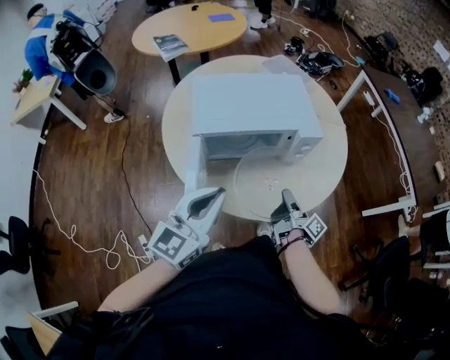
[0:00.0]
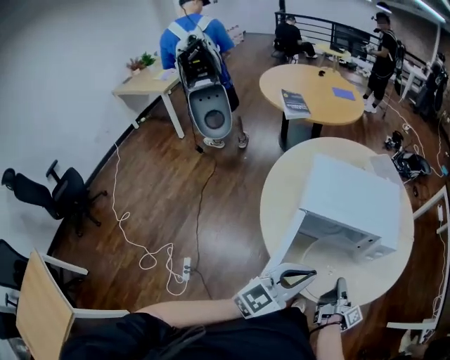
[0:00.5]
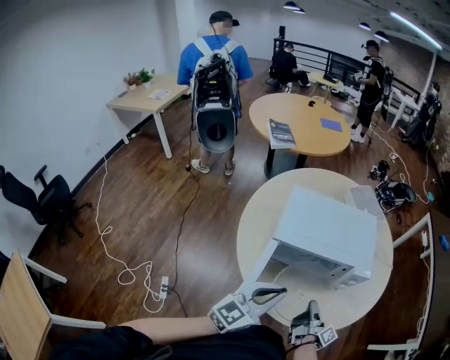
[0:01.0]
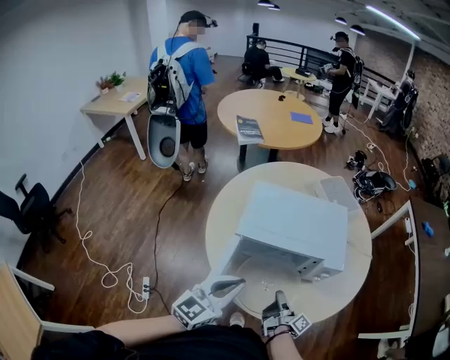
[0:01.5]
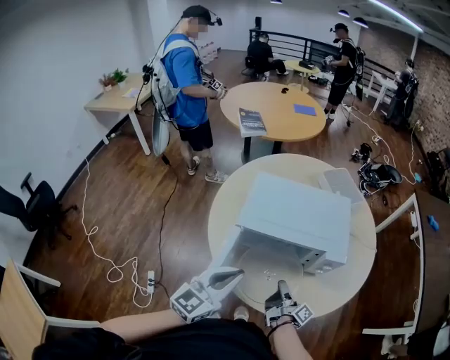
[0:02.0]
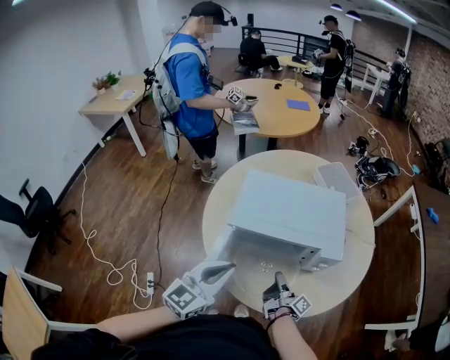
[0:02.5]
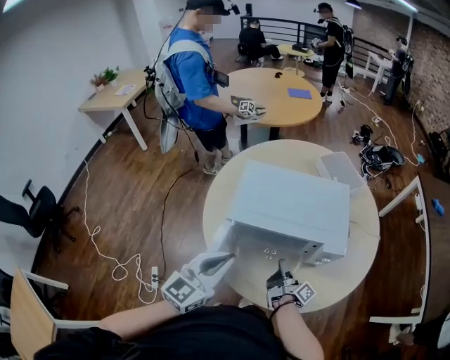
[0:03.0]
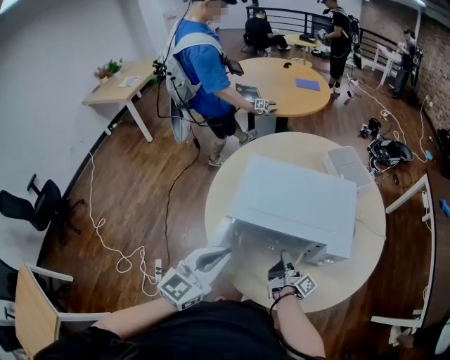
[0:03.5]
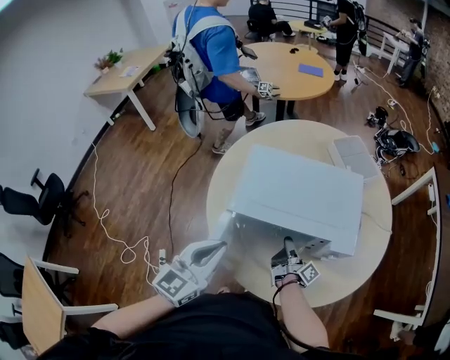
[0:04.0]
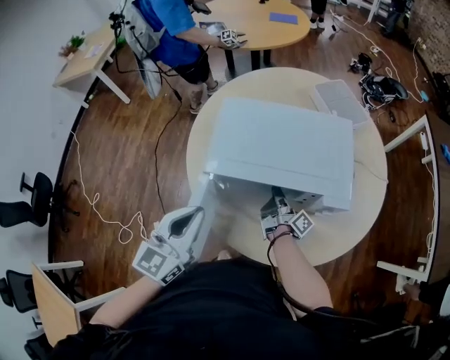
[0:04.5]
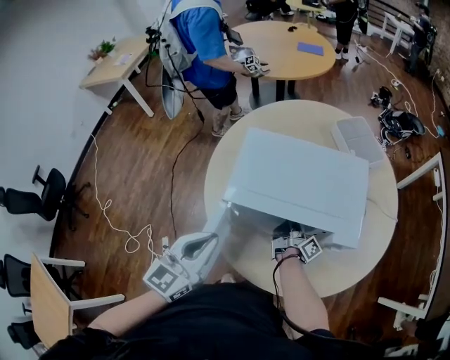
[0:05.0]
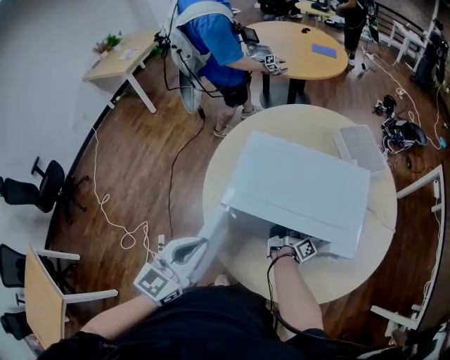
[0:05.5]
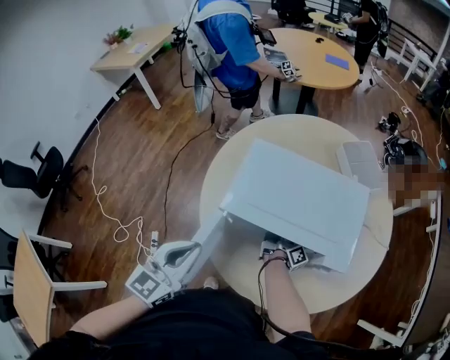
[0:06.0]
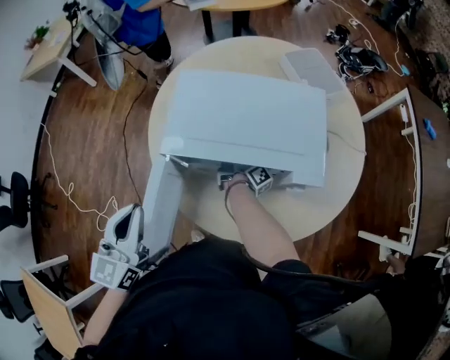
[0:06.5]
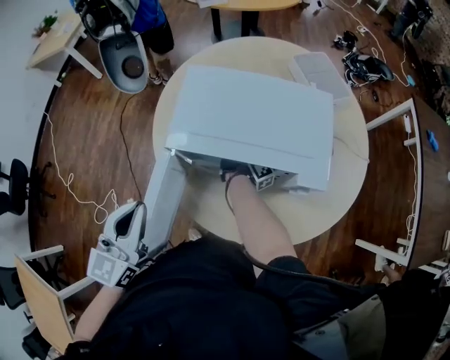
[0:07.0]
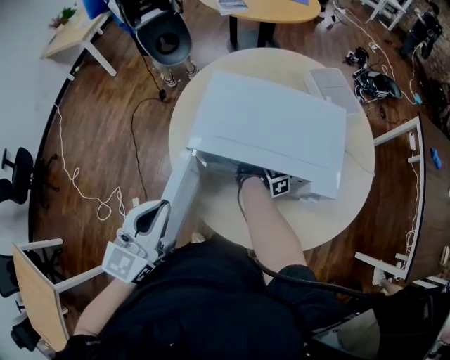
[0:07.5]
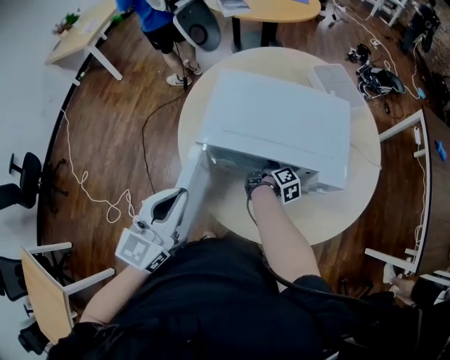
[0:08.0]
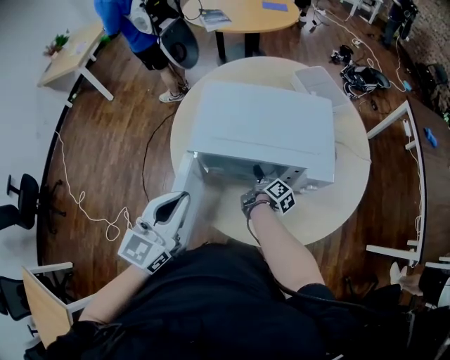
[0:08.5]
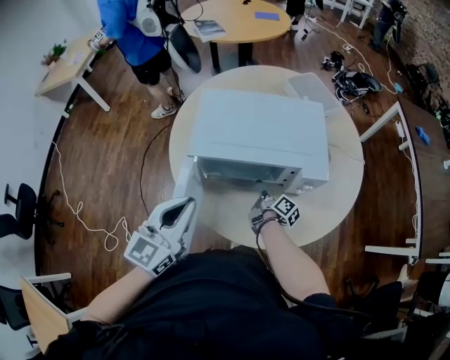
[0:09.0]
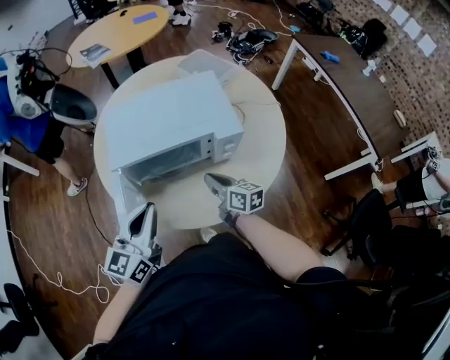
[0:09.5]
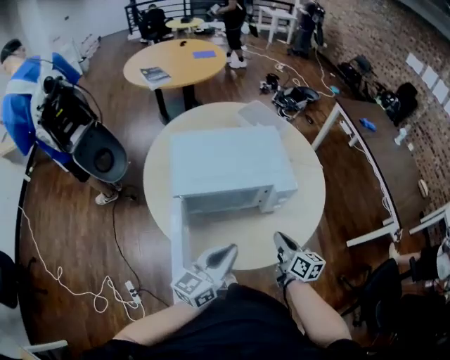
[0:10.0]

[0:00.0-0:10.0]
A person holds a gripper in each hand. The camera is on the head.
0:00.0 to 0:02.0: The right gripper moves to the left, roughly 5 cm.
0:02.0 to 0:04.0: The right gripper moves forward, approximately 10 cm; the left gripper moves some 5 cm.
0:04.0 to 0:06.0: The right gripper shifts approximately 10 cm forward.
0:06.0 to 0:08.0: The right gripper turns by some 30 degrees, and opens its fingers.
0:08.0 to 0:10.0: The left gripper travels to the right by some 15 cm, and rotates roughly 40 degrees; the right gripper heads backward, to the right and upward, covering roughly 25 cm, rolls counterclockwise, seen from behind, by some 40 degrees, and closes its fingers.

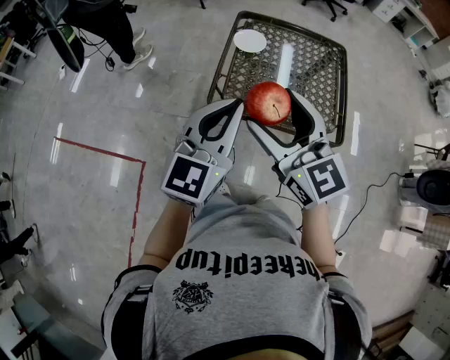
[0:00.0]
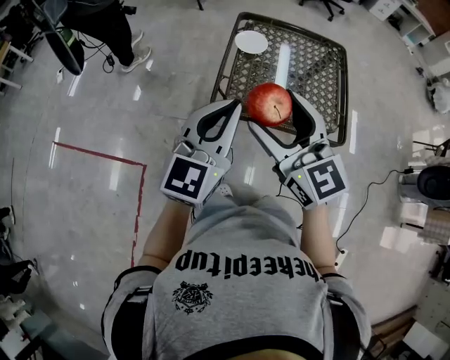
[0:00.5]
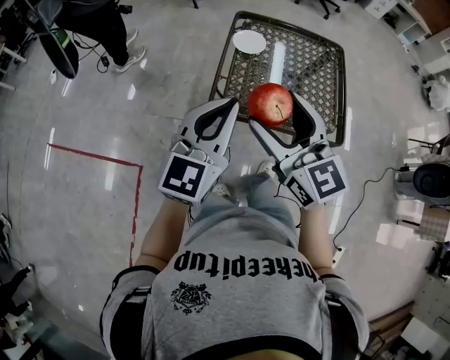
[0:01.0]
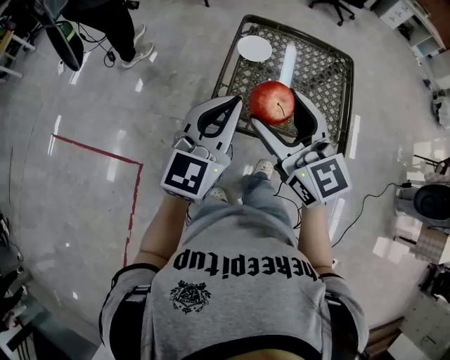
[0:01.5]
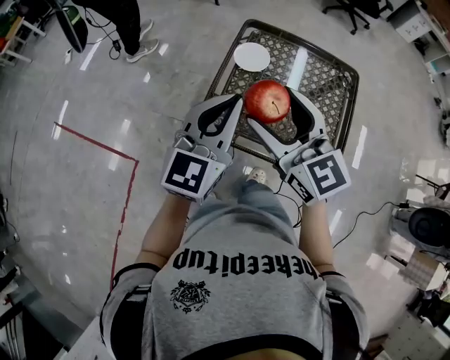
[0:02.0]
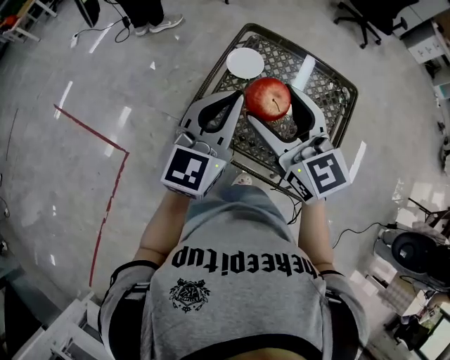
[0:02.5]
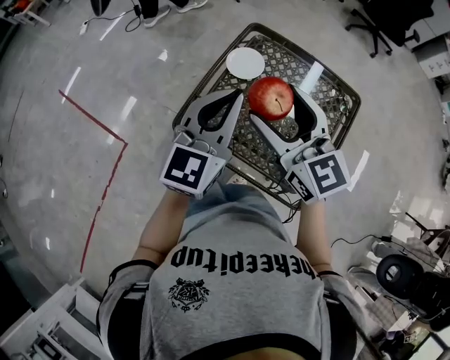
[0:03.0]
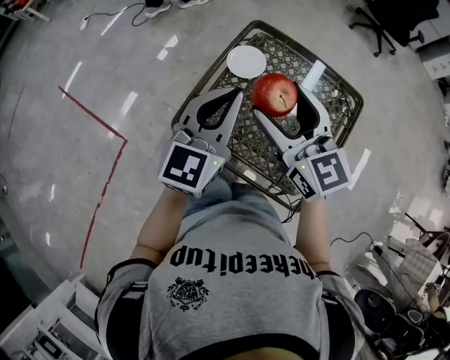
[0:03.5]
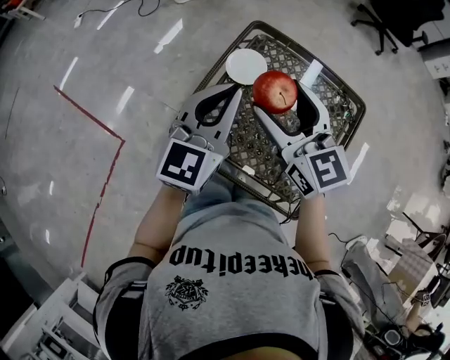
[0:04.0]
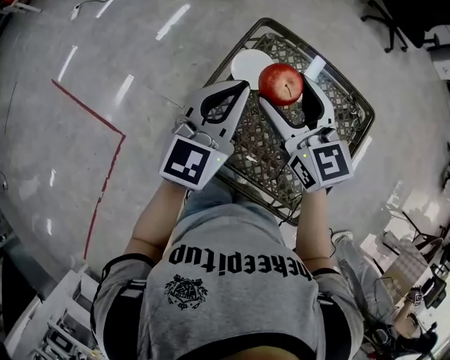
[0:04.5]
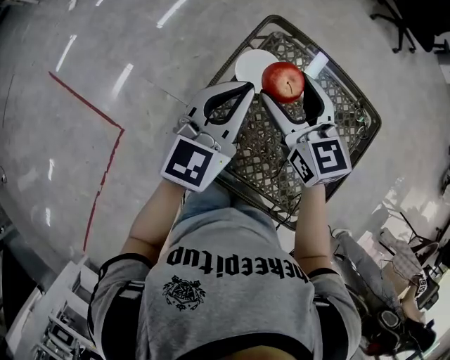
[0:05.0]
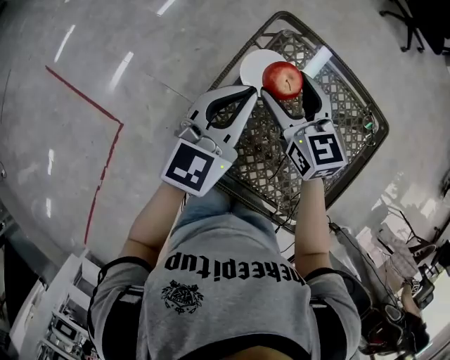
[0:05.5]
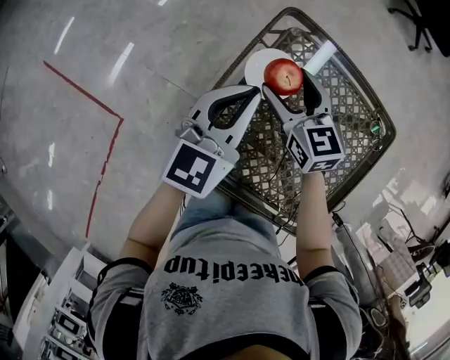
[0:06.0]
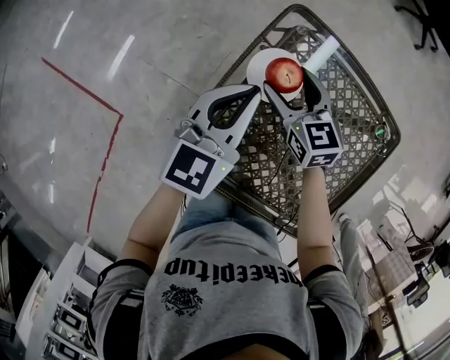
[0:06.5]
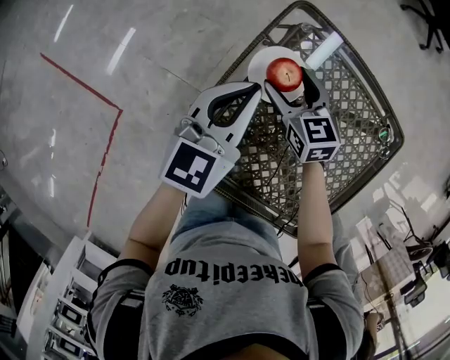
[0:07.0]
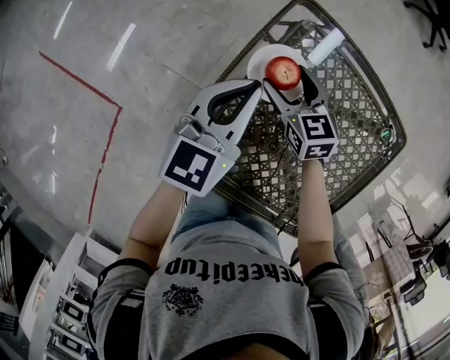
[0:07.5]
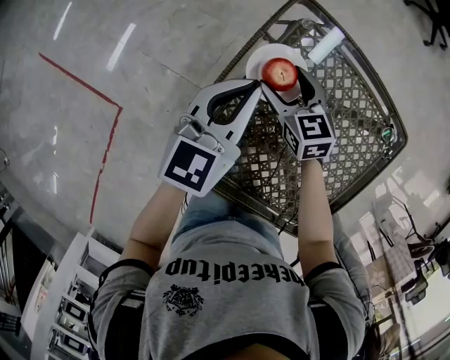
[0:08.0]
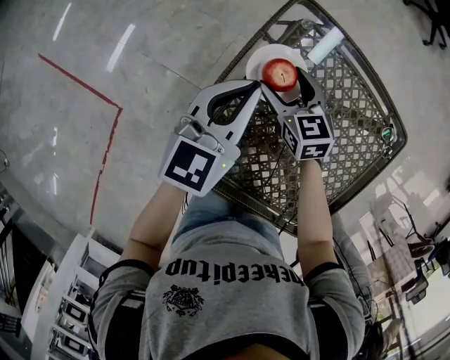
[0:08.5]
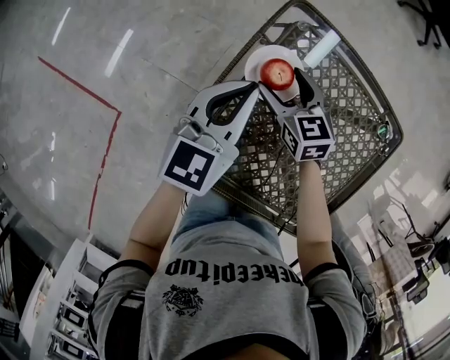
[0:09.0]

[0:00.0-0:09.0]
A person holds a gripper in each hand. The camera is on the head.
0:00.0 to 0:02.0: Both grippers travel together forward, about 15 cm.
0:02.0 to 0:04.5: The grippers both shift forward and to the right by about 20 cm.
0:04.5 to 0:07.0: The right gripper travels downward and forward by approximately 25 cm, and turns by roughly 20 degrees. Meanwhile the left gripper heads downward and forward, covering approximately 15 cm.
0:07.0 to 0:09.0: The grippers make only small movements.

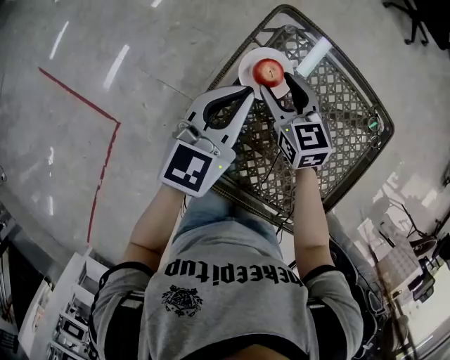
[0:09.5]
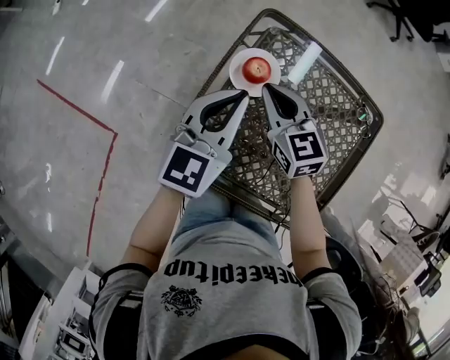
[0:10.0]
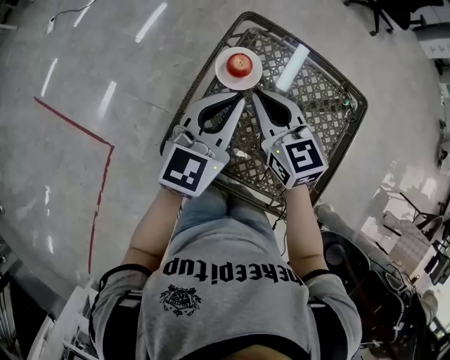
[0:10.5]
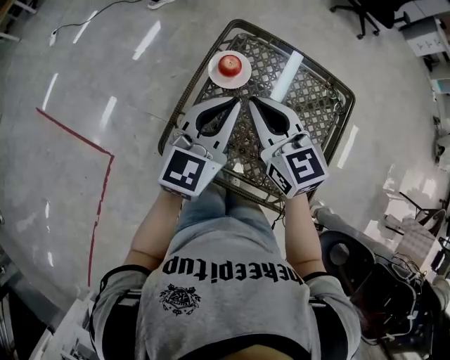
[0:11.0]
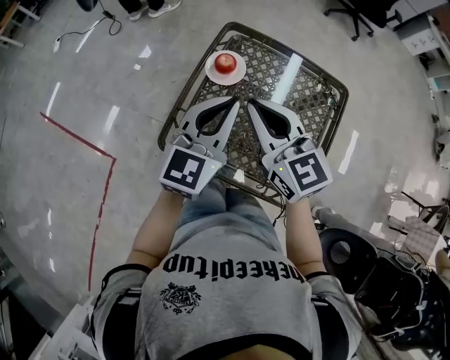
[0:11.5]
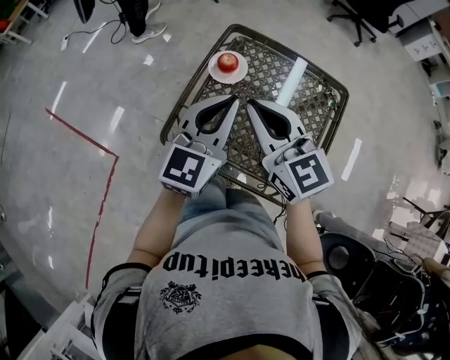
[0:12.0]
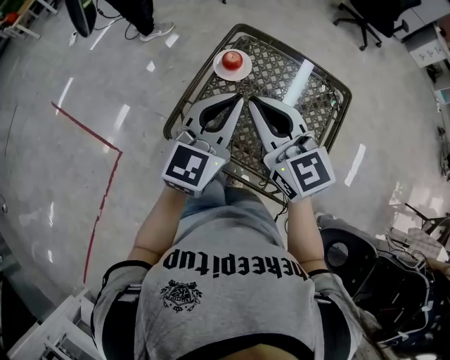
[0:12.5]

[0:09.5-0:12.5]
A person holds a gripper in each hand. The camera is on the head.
0:09.5 to 0:11.0: The right gripper shifts roughly 25 cm upward and backward, and closes its fingers; the left gripper goes approximately 15 cm backward and upward.
0:11.0 to 0:12.5: The grippers both shift backward and upward by some 10 cm.

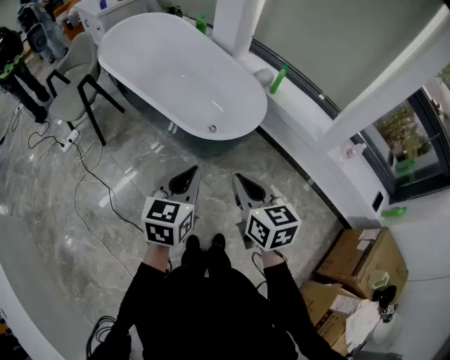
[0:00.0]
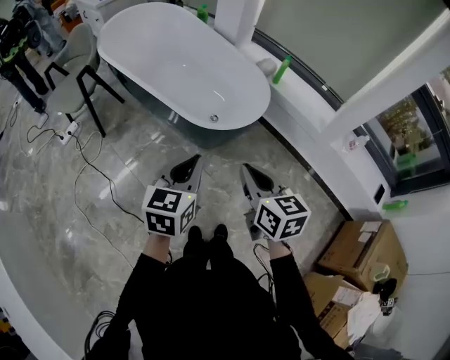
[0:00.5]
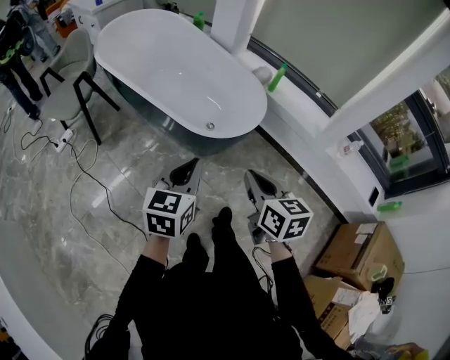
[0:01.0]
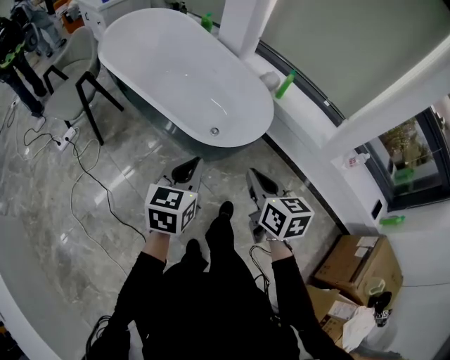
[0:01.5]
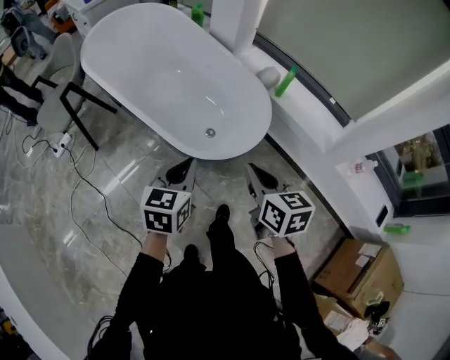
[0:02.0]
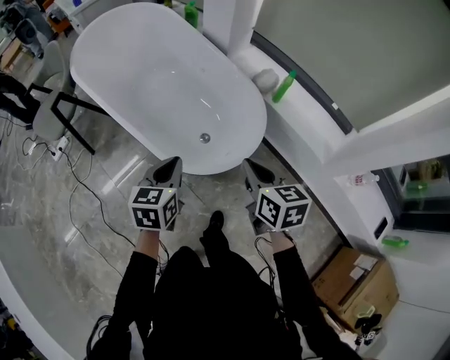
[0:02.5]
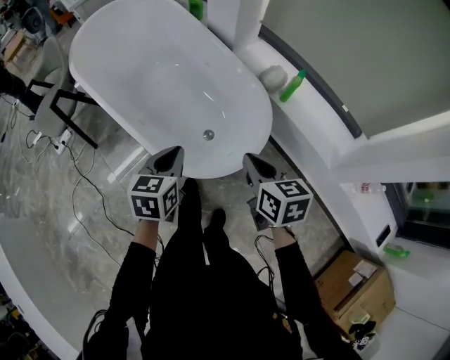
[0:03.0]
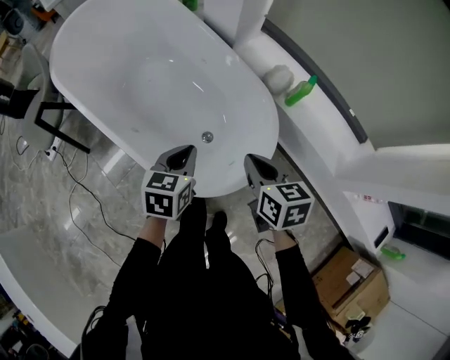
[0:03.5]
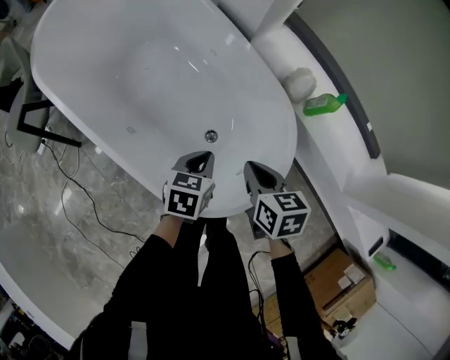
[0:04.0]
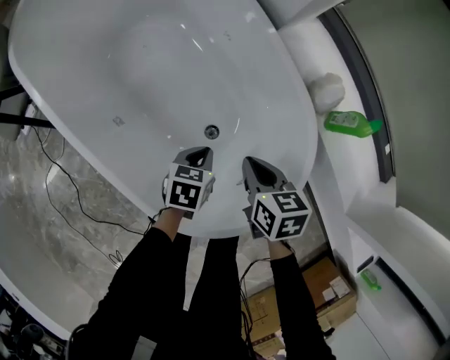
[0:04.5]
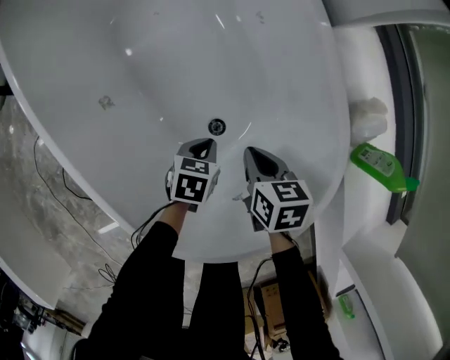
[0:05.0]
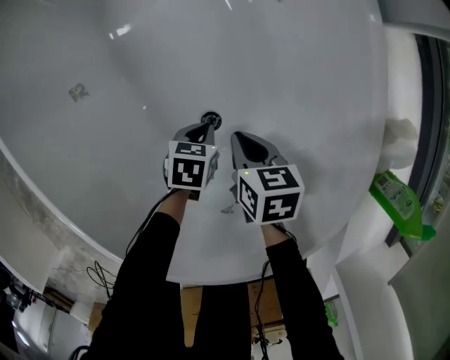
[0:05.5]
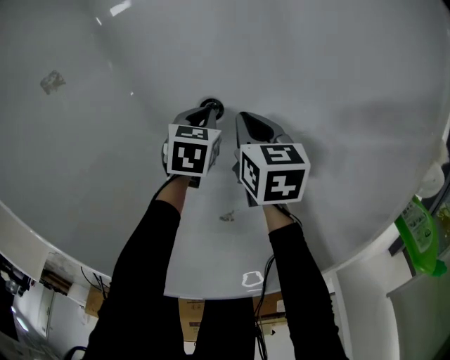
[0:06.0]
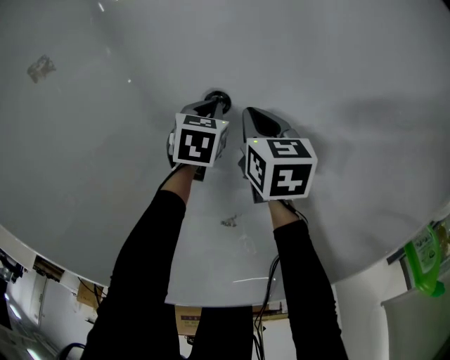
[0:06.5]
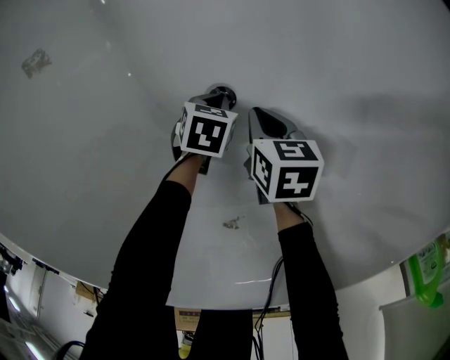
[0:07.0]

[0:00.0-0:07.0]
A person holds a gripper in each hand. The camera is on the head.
0:00.0 to 0:02.0: The two grippers go roughly 20 cm forward.
0:02.0 to 0:03.5: Both grippers travel together forward, about 25 cm.
0:03.5 to 0:05.0: The right gripper is displaced downward and forward by approximately 35 cm, and swivels about 30 degrees, while the left gripper shifts roughly 40 cm downward, and changes its angle by some 30 degrees.
0:05.0 to 0:07.0: The grippers both shift downward by some 25 cm.
